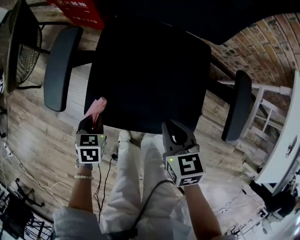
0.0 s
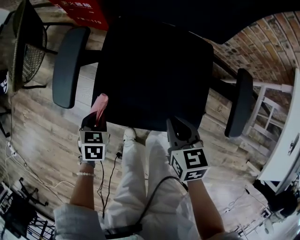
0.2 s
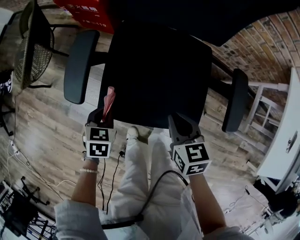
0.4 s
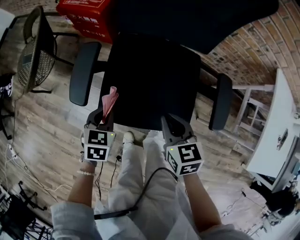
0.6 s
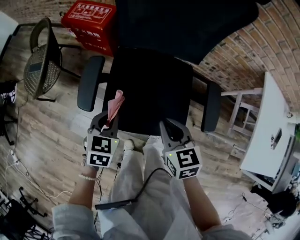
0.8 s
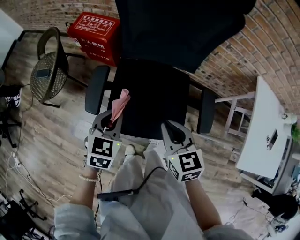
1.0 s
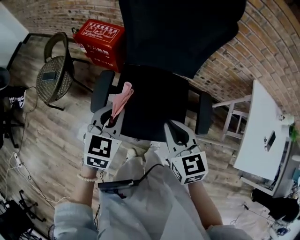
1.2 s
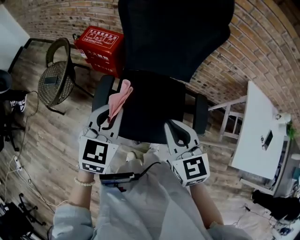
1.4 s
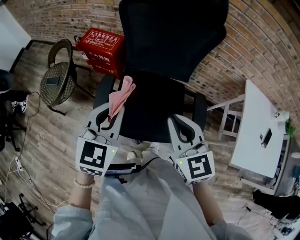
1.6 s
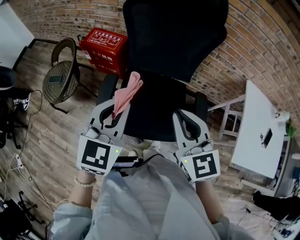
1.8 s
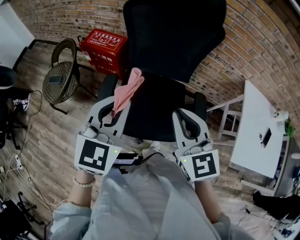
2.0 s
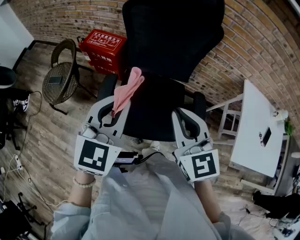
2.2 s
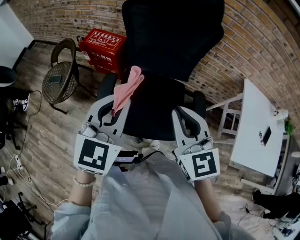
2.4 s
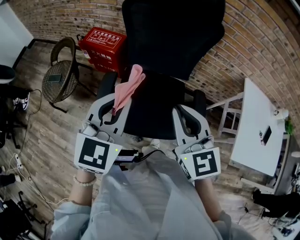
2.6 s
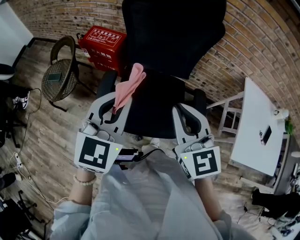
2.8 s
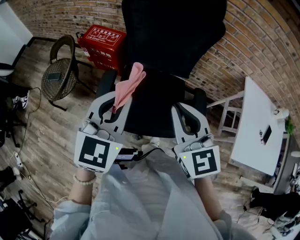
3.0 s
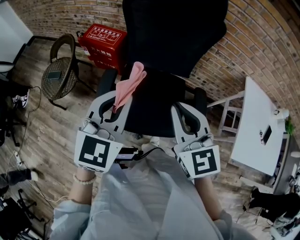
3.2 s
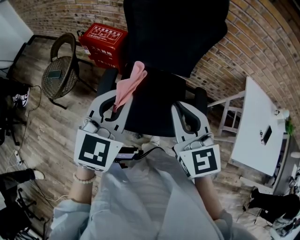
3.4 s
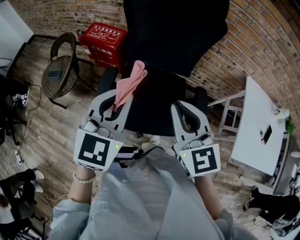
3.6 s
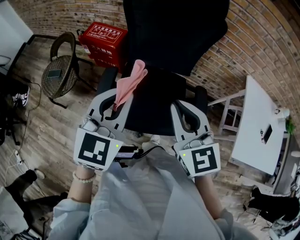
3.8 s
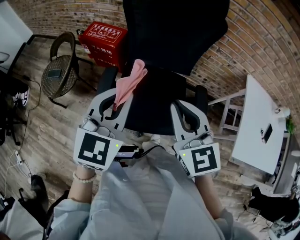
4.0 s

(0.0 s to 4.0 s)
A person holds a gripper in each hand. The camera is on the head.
0.0 s - 1.4 s: The grippers both shift upward by about 40 cm. The right gripper turns by approximately 30 degrees. The left gripper tilts its fingers about 40 degrees upward.
1.4 s - 2.6 s: Both grippers travel together upward, some 10 cm.
2.6 s - 4.0 s: Neither gripper changes place.

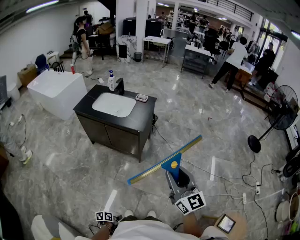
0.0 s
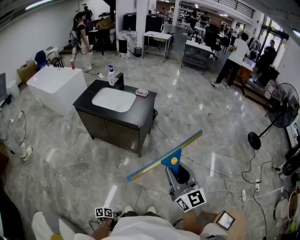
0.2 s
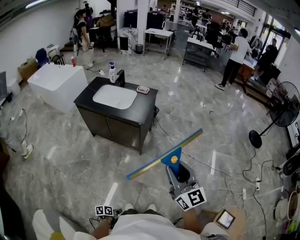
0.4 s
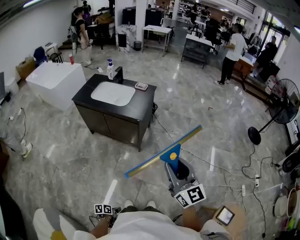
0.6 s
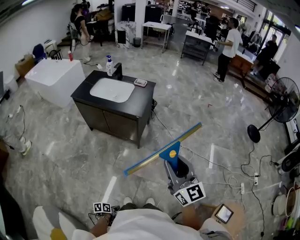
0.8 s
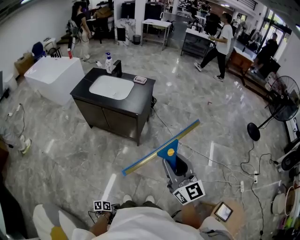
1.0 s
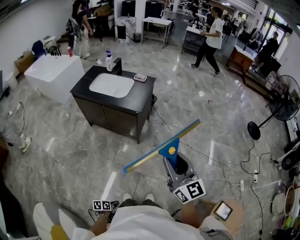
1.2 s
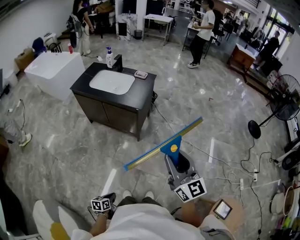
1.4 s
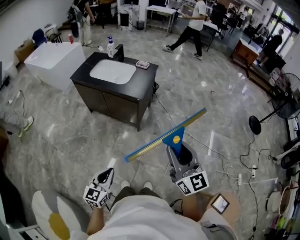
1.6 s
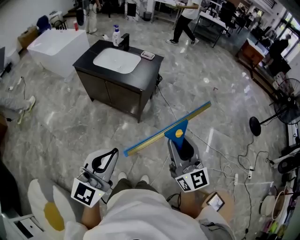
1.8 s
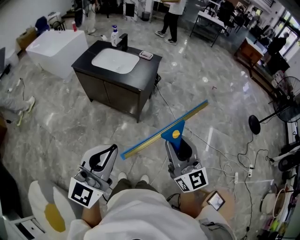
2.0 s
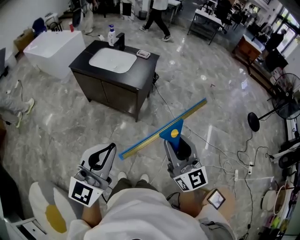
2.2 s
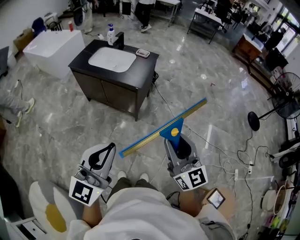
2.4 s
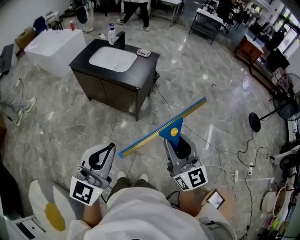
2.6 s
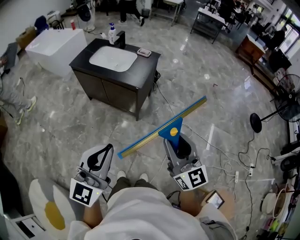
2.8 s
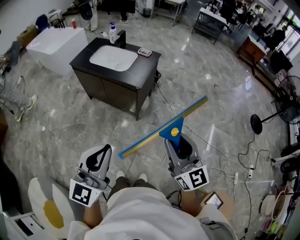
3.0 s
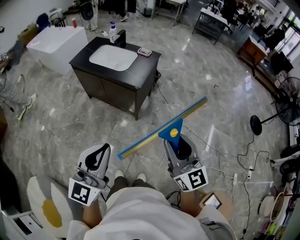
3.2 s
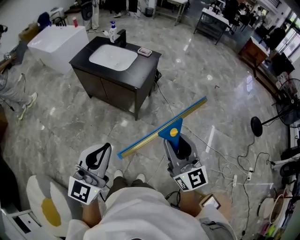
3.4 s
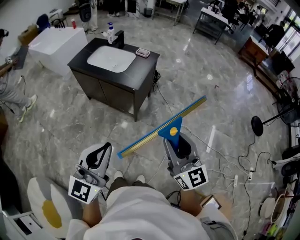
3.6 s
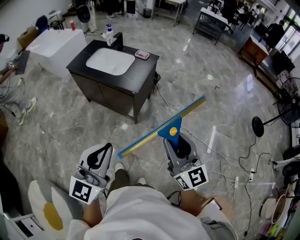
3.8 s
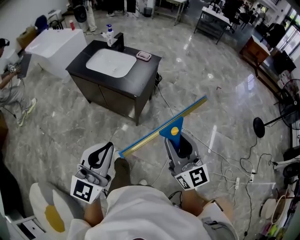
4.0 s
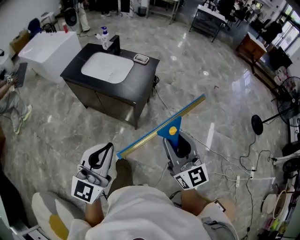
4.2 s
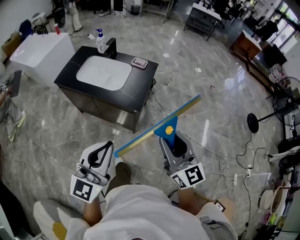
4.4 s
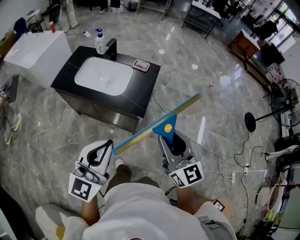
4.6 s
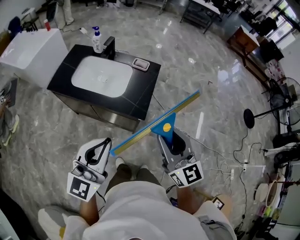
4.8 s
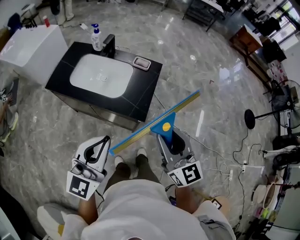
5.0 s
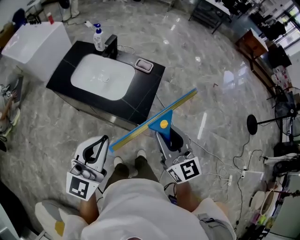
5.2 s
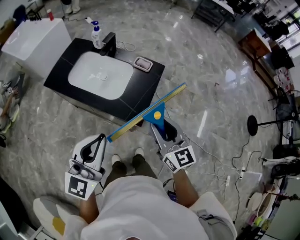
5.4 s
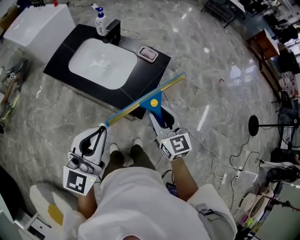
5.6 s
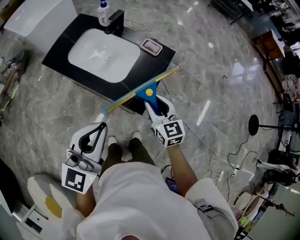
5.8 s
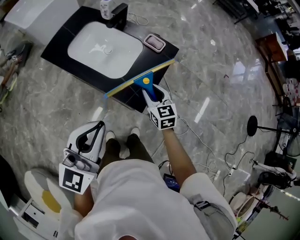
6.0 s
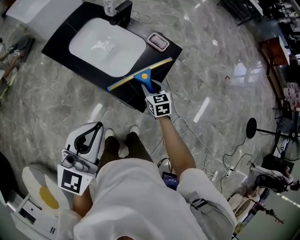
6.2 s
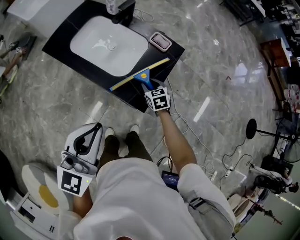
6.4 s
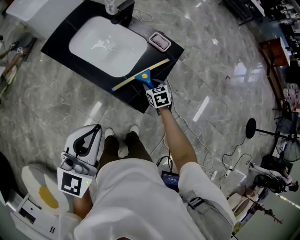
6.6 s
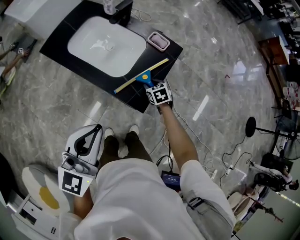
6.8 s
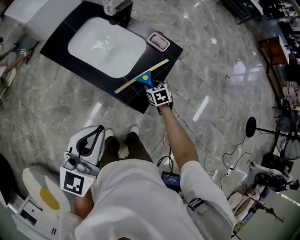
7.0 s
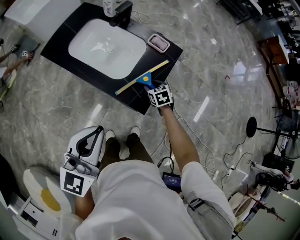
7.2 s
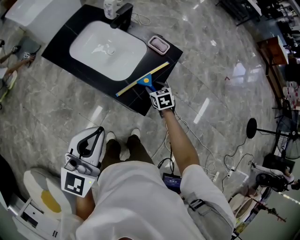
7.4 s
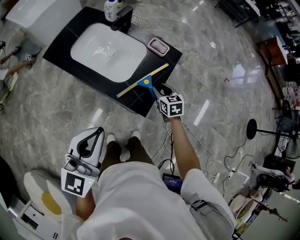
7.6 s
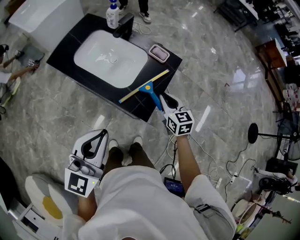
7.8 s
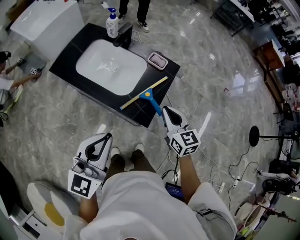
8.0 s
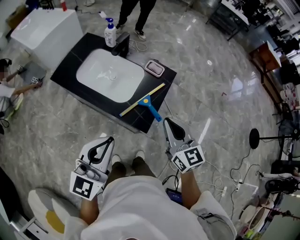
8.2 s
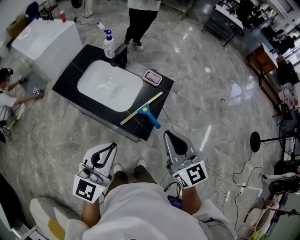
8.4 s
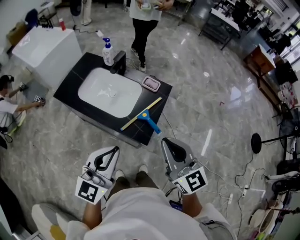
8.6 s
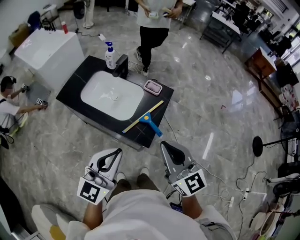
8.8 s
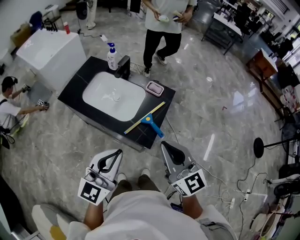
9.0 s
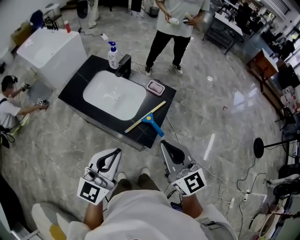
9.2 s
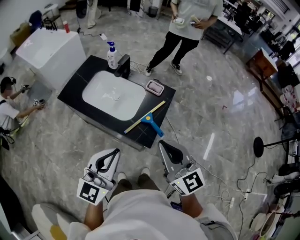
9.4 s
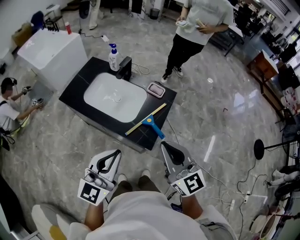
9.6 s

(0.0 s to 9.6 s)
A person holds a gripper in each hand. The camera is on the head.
0.0 s - 1.6 s: The left gripper goes some 35 cm upward and forward, and angles its fingers upward, by roughly 30 degrees.
1.6 s - 3.2 s: The left gripper shifts roughly 20 cm upward, and swivels about 30 degrees.
3.2 s - 4.8 s: The right gripper goes roughly 35 cm forward and to the left; the left gripper is displaced forward by about 35 cm.
4.8 s - 6.4 s: The left gripper is displaced forward and downward by approximately 15 cm. Meanwhile the right gripper heads downward and forward, covering approximately 50 cm, and angles its fingers downward, by roughly 50 degrees.
6.4 s - 8.0 s: The right gripper goes roughly 20 cm upward, swivels about 30 degrees, and closes its fingers.
8.0 s - 9.6 s: The right gripper is displaced upward and backward by some 20 cm, and changes its angle by some 20 degrees.

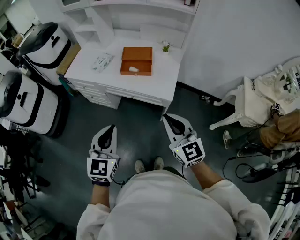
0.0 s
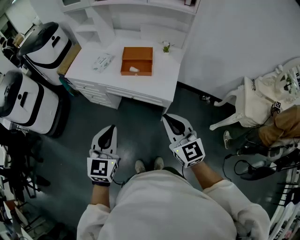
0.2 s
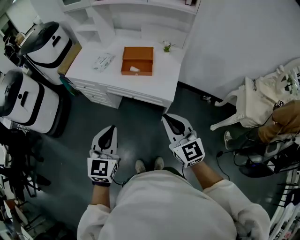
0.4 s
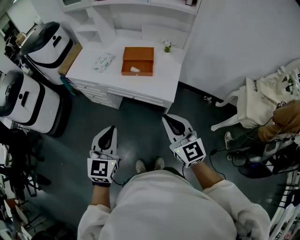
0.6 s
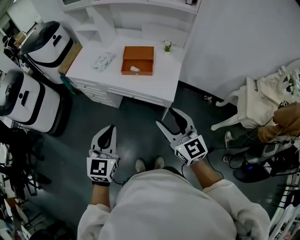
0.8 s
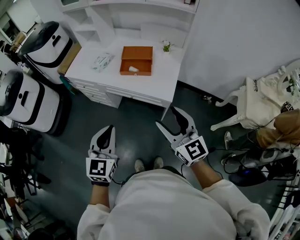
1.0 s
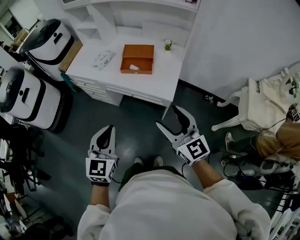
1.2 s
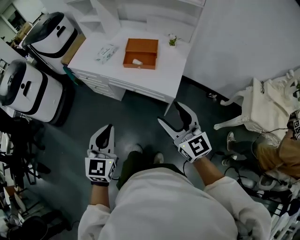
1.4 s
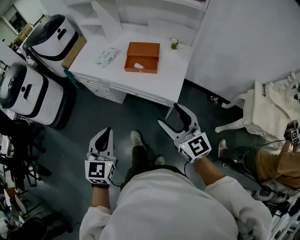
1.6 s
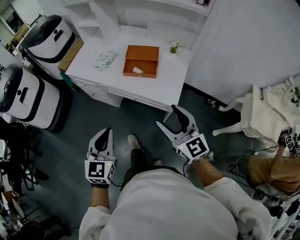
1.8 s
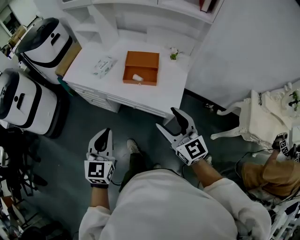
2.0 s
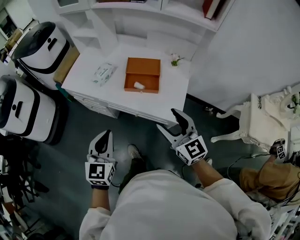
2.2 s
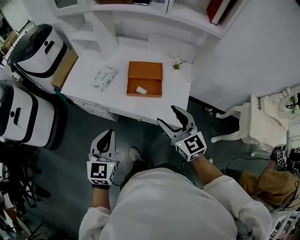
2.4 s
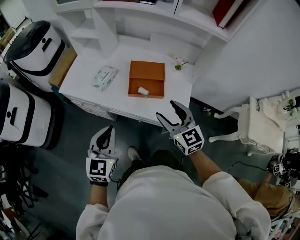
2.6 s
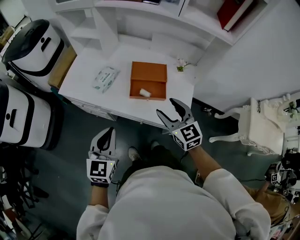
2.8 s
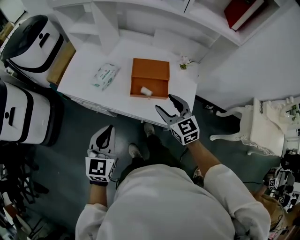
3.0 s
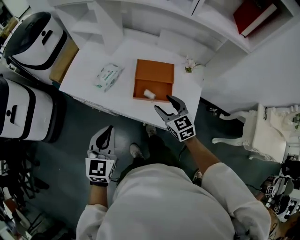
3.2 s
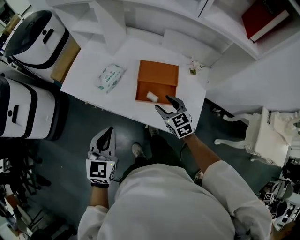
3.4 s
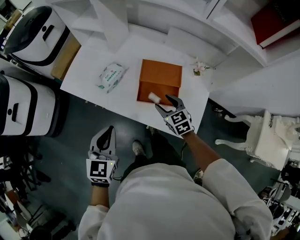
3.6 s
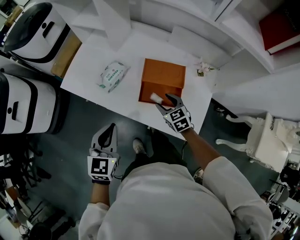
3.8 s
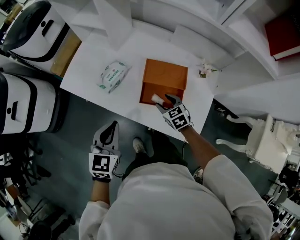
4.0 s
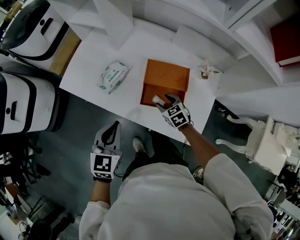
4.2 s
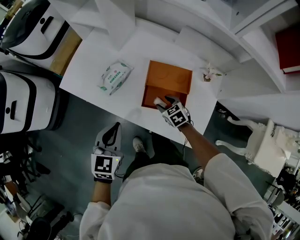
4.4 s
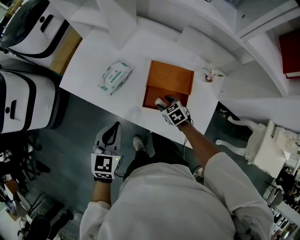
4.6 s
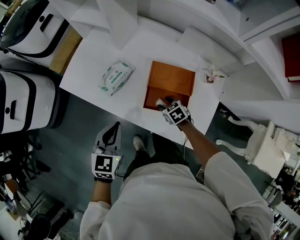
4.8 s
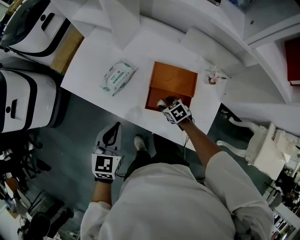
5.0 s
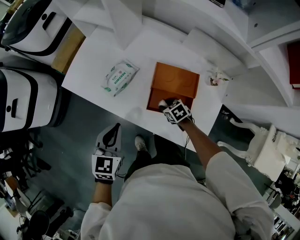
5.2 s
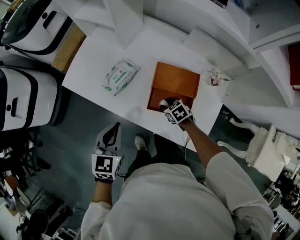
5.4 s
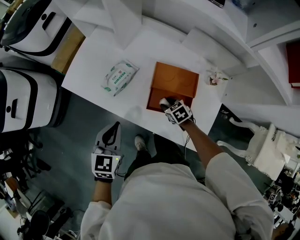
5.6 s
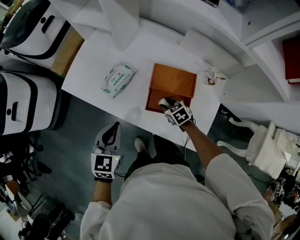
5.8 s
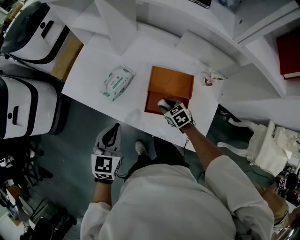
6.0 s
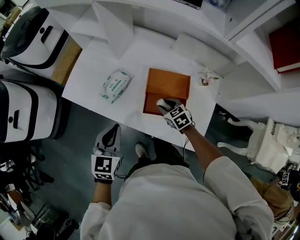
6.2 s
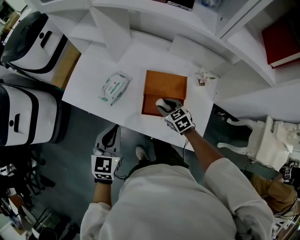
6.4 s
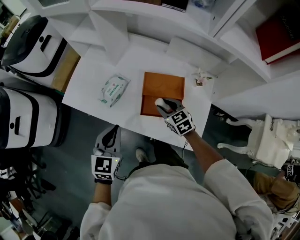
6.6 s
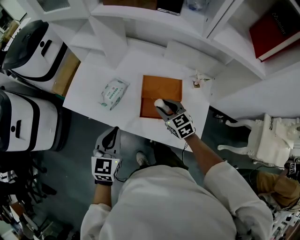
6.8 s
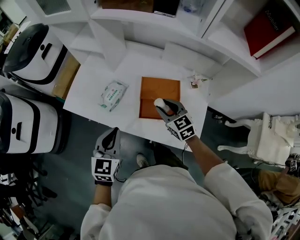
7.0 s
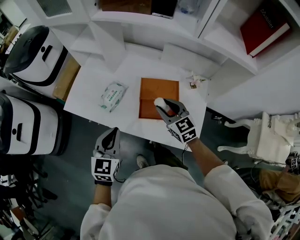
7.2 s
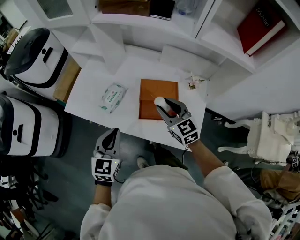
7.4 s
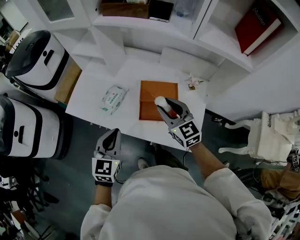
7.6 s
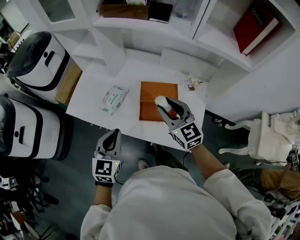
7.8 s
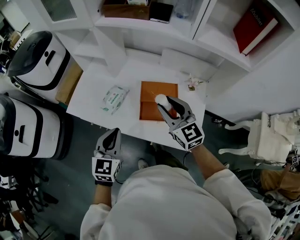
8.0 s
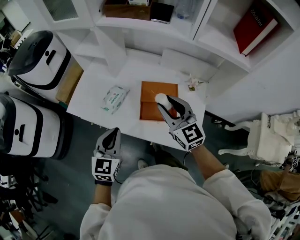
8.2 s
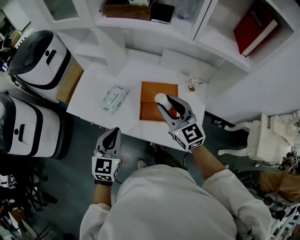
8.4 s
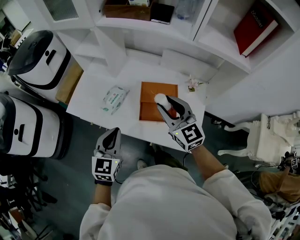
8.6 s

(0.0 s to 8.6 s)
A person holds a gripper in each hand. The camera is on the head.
0.0 s - 1.4 s: The right gripper moves roughly 5 cm, and opens its fingers.
1.4 s - 2.8 s: Both grippers move forward, about 30 cm.
2.8 s - 4.4 s: The right gripper goes approximately 35 cm downward and forward, and angles its fingers downward, by approximately 40 degrees; the left gripper shifts roughly 20 cm forward and downward.
4.4 s - 5.8 s: The grippers move only a little.
5.8 s - 7.2 s: The left gripper shifts some 5 cm upward; the right gripper is displaced upward by some 25 cm, and points its fingers some 30 degrees further upward.
7.2 s - 8.6 s: The right gripper heads upward, covering about 10 cm.

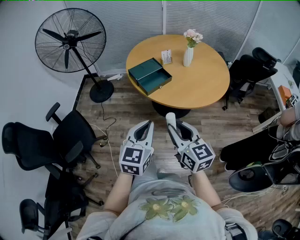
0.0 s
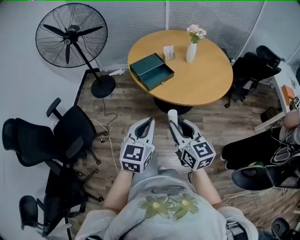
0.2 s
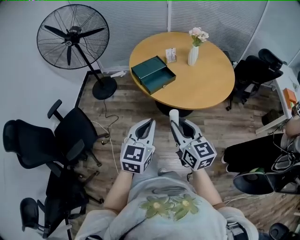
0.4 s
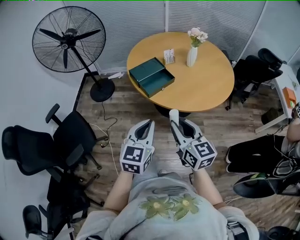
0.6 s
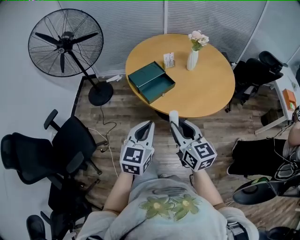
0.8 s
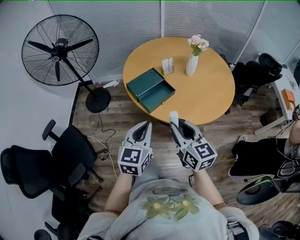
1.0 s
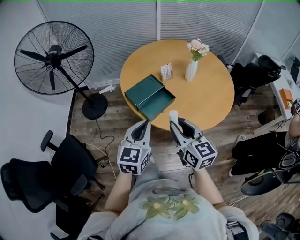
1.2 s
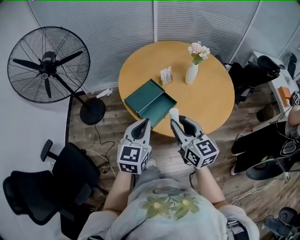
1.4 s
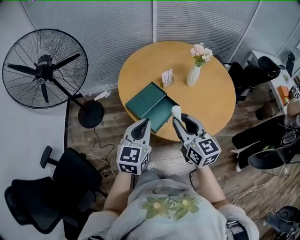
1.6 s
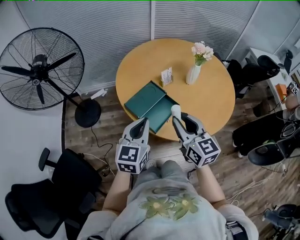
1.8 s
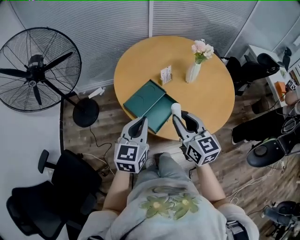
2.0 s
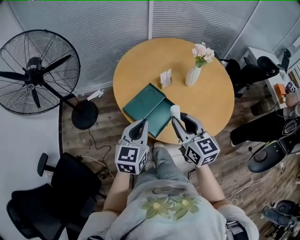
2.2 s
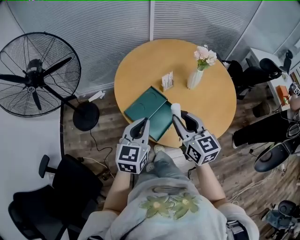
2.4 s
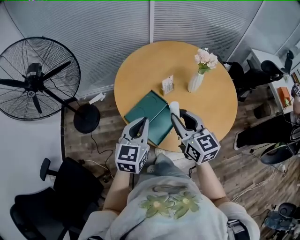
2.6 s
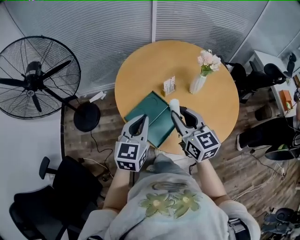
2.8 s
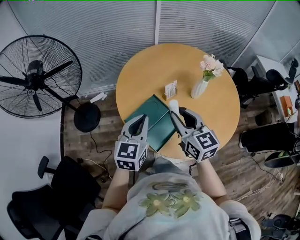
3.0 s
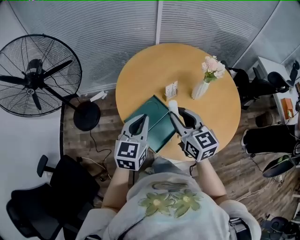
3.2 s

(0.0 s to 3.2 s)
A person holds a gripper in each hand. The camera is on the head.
0.0 s - 1.6 s: The grippers both shift forward by roughly 35 cm.
1.6 s - 3.2 s: Both grippers move forward, roughly 20 cm.
